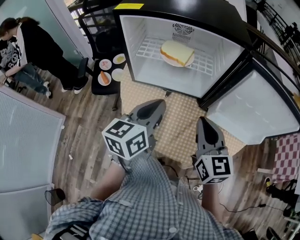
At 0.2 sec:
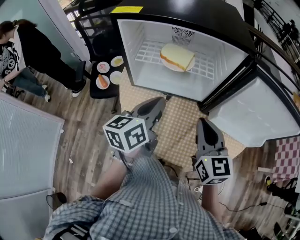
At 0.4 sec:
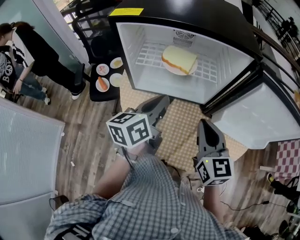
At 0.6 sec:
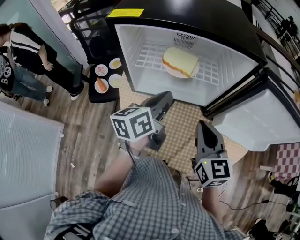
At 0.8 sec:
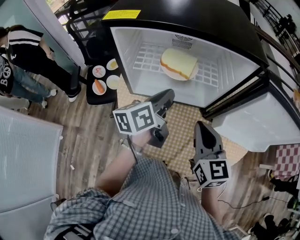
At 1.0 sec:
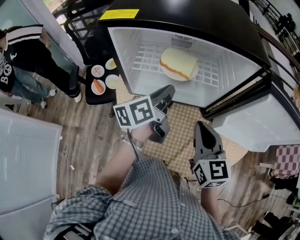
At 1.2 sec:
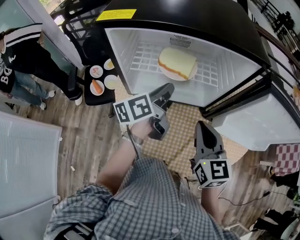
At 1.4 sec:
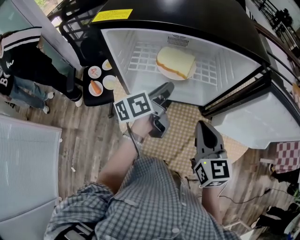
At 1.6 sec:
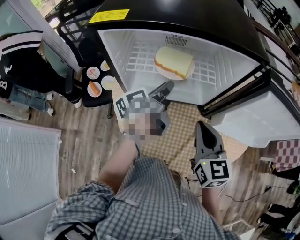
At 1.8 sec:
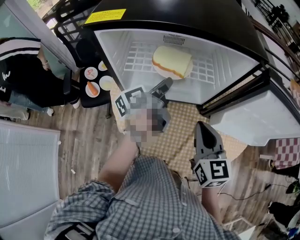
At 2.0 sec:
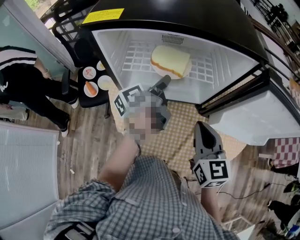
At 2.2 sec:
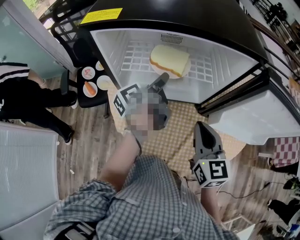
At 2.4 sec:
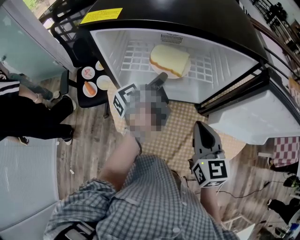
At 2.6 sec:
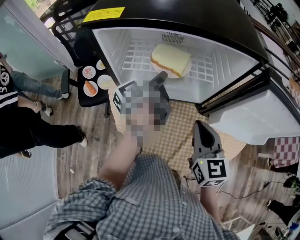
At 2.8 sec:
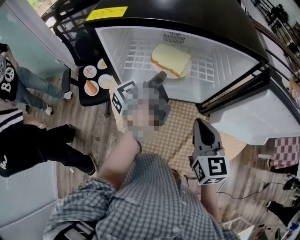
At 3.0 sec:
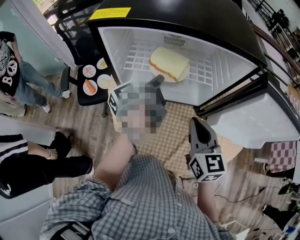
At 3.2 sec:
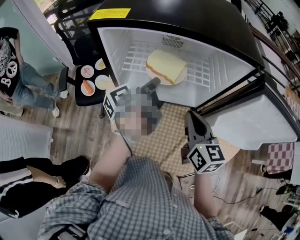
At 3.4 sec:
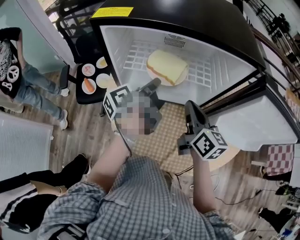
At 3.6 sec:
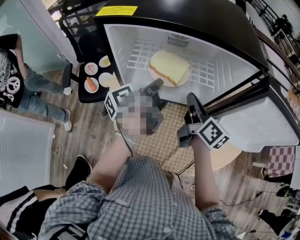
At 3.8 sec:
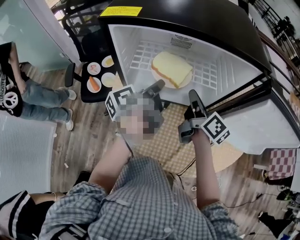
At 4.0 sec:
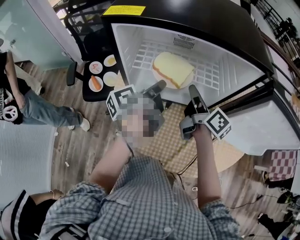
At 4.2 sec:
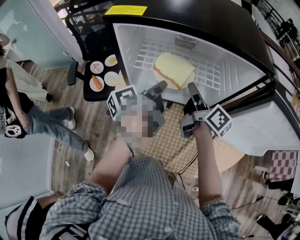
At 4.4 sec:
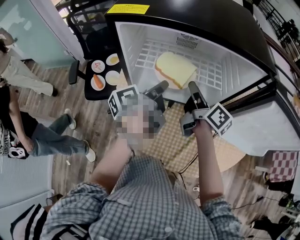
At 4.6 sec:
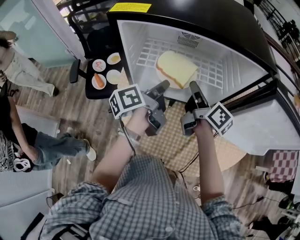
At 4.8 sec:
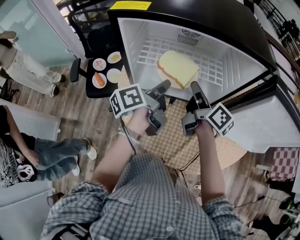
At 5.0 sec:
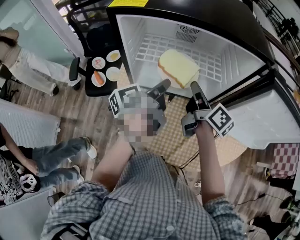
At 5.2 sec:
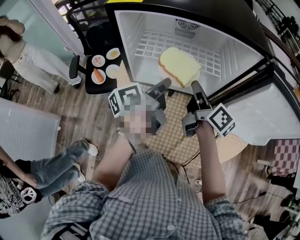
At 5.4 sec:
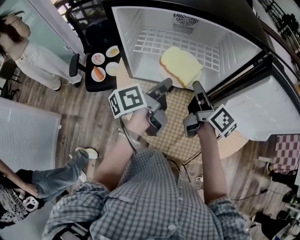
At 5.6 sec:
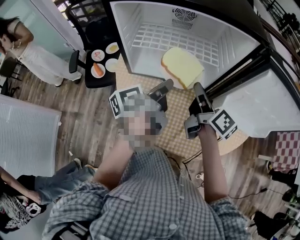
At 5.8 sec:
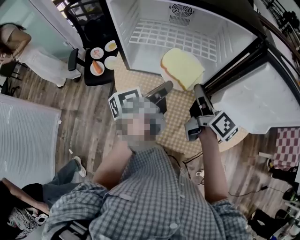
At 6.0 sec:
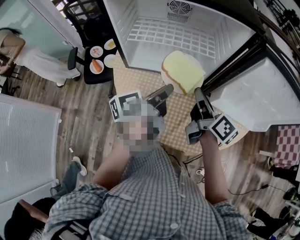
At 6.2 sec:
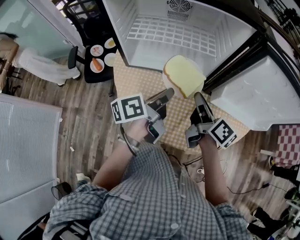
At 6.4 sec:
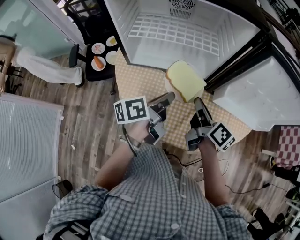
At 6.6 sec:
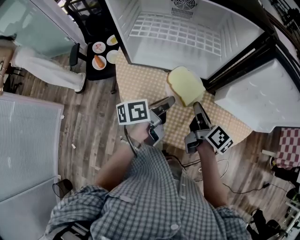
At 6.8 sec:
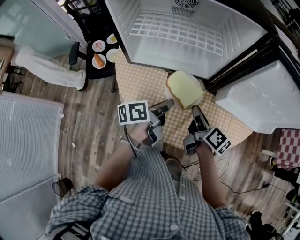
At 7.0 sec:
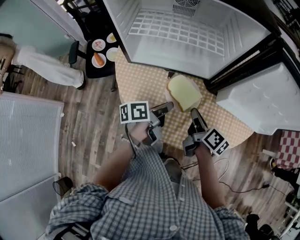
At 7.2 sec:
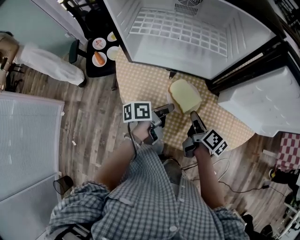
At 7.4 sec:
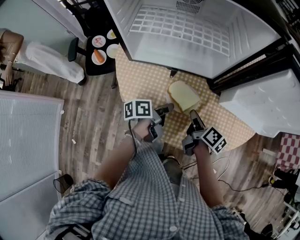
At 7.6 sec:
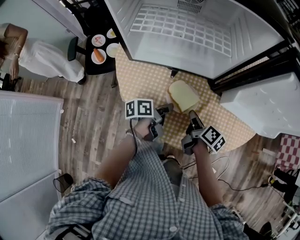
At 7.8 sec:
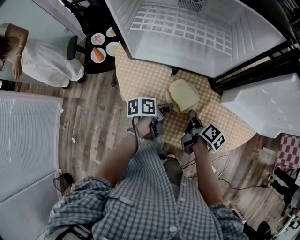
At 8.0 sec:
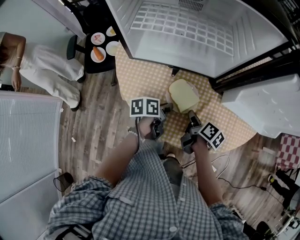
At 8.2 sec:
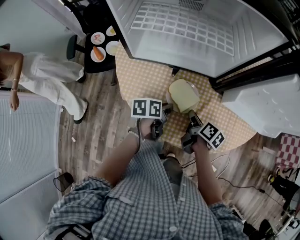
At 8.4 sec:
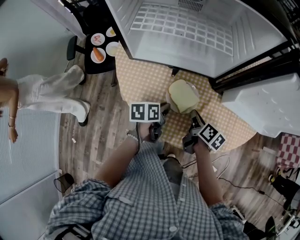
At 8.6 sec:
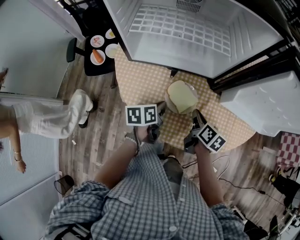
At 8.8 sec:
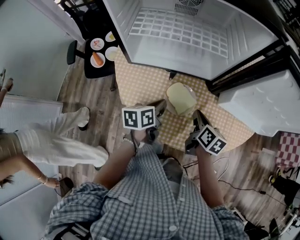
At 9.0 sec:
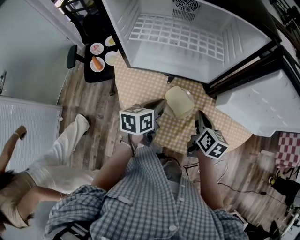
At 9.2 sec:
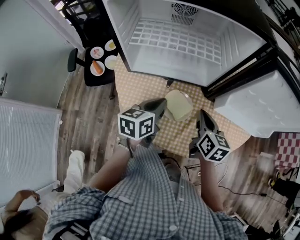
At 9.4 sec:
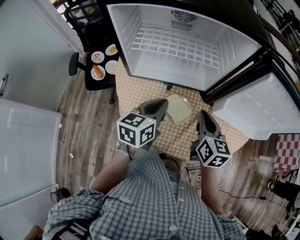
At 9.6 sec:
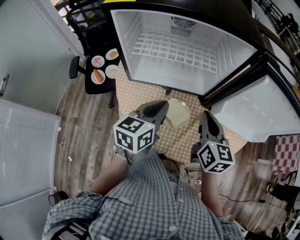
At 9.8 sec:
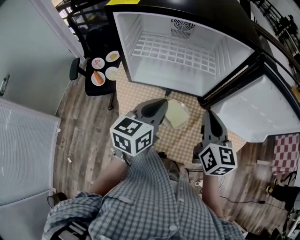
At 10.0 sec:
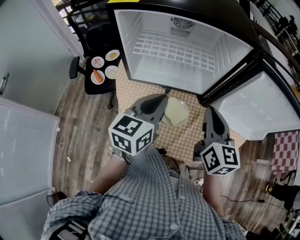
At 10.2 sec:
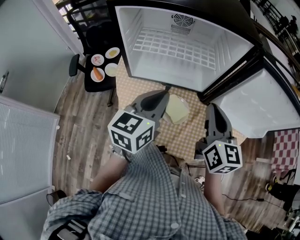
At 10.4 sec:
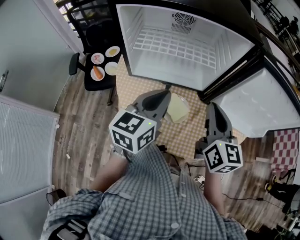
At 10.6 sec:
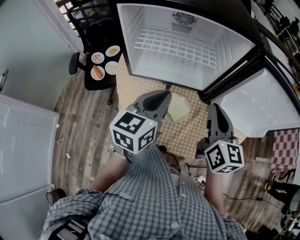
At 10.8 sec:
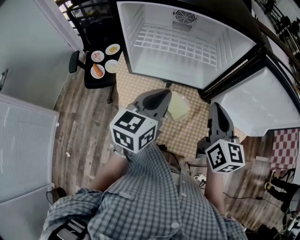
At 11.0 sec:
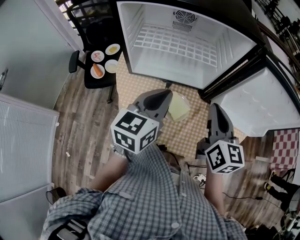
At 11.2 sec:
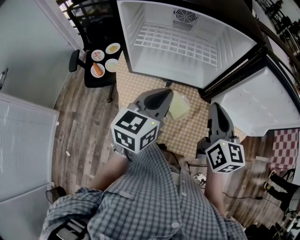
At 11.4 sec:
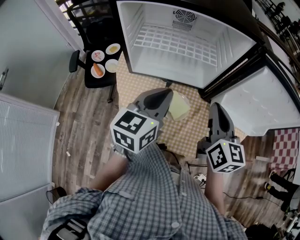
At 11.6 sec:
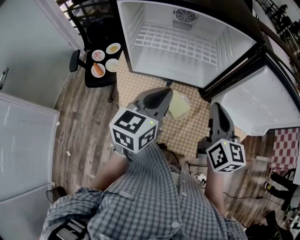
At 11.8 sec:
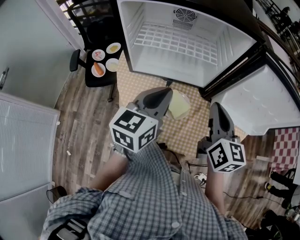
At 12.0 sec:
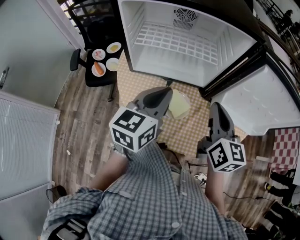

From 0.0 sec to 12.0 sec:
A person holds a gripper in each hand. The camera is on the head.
From 0.0 sec to 1.6 sec: The left gripper moves forward, some 20 cm, turns by about 40 degrees, and opens its fingers; the right gripper shifts approximately 5 cm forward.
From 1.6 sec to 3.0 sec: There are only small adjustments of the grippers.
From 3.0 sec to 4.4 sec: The right gripper moves forward, some 15 cm, and rotates around the line of its fingers by approximately 50 degrees, clockwise from behind.
From 4.4 sec to 6.0 sec: The two grippers go some 15 cm backward and to the right.
From 6.0 sec to 7.6 sec: The grippers both shift downward by some 20 cm. The left gripper swivels roughly 20 degrees. Meanwhile the right gripper rotates approximately 30 degrees.
From 7.6 sec to 9.0 sec: The two grippers go some 10 cm upward. The right gripper swivels roughly 30 degrees, while the left gripper changes its angle by approximately 40 degrees.
From 9.0 sec to 10.4 sec: The two grippers go about 20 cm upward. The left gripper changes its angle by roughly 30 degrees. Meanwhile the right gripper turns by about 30 degrees.
From 10.4 sec to 12.0 sec: The grippers make only small movements.

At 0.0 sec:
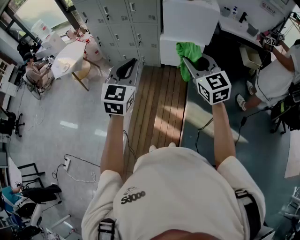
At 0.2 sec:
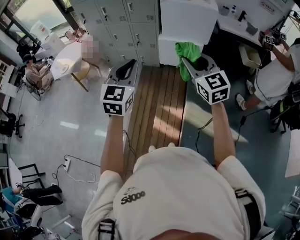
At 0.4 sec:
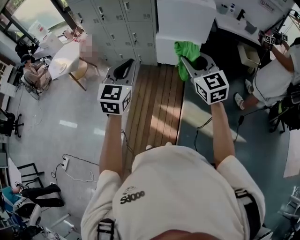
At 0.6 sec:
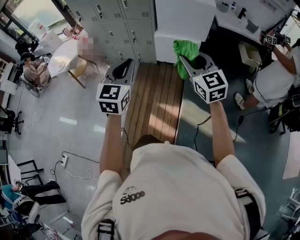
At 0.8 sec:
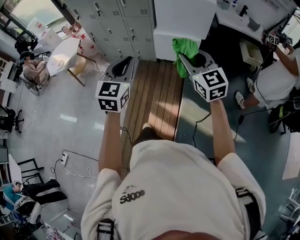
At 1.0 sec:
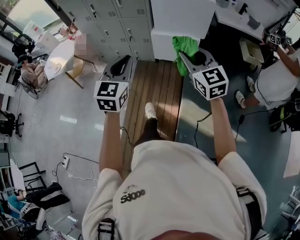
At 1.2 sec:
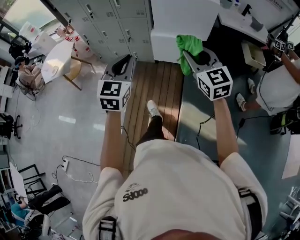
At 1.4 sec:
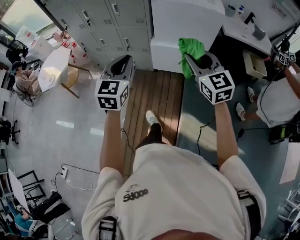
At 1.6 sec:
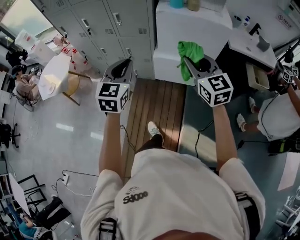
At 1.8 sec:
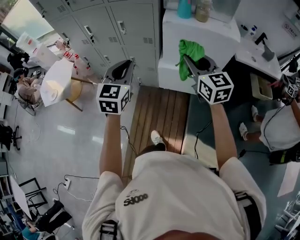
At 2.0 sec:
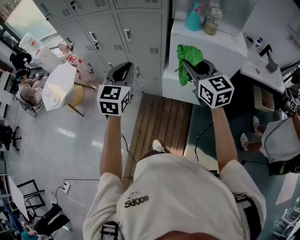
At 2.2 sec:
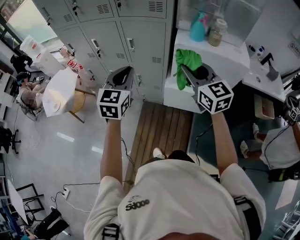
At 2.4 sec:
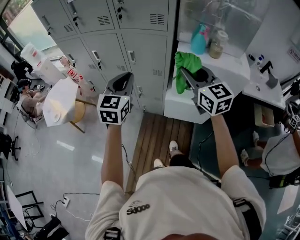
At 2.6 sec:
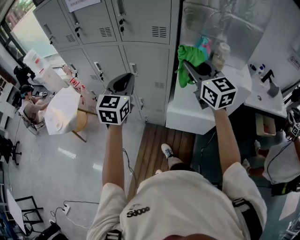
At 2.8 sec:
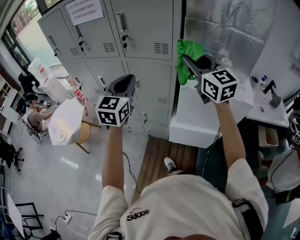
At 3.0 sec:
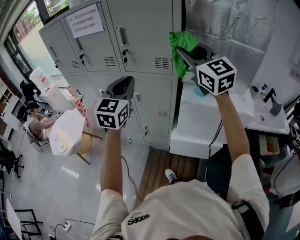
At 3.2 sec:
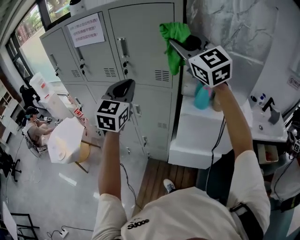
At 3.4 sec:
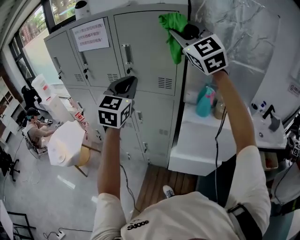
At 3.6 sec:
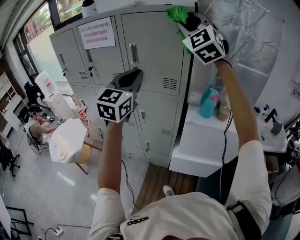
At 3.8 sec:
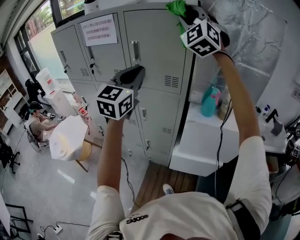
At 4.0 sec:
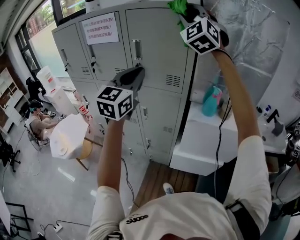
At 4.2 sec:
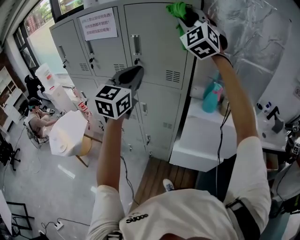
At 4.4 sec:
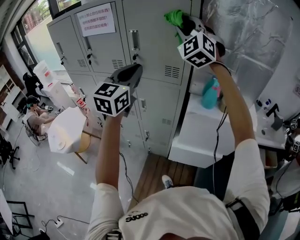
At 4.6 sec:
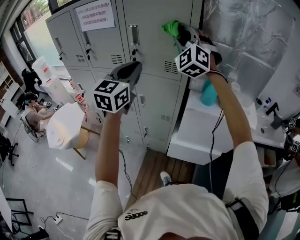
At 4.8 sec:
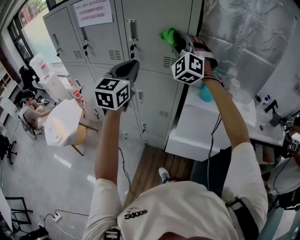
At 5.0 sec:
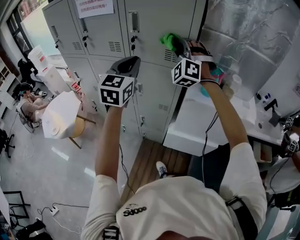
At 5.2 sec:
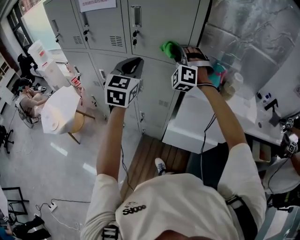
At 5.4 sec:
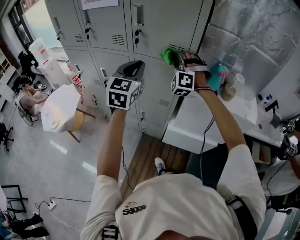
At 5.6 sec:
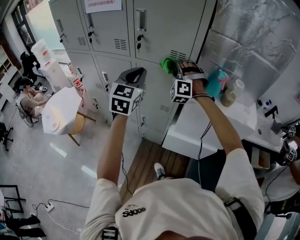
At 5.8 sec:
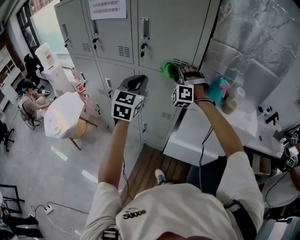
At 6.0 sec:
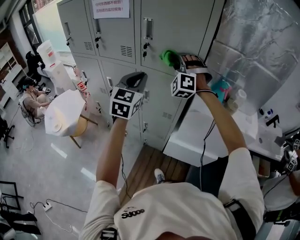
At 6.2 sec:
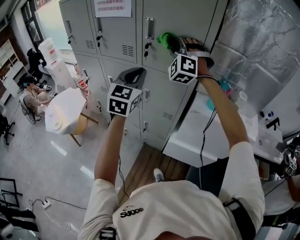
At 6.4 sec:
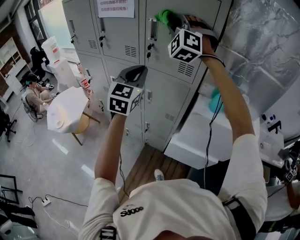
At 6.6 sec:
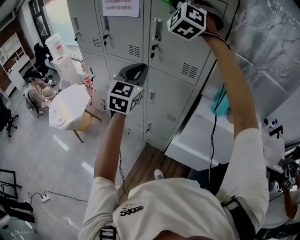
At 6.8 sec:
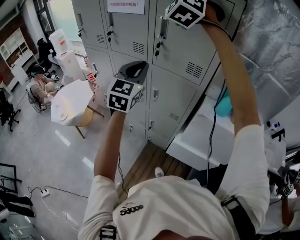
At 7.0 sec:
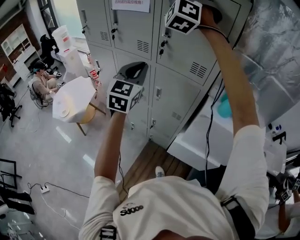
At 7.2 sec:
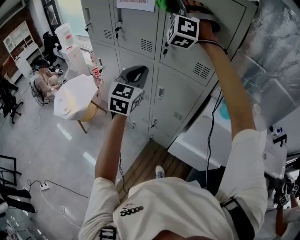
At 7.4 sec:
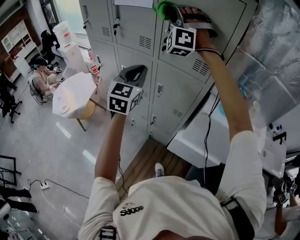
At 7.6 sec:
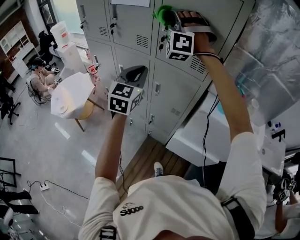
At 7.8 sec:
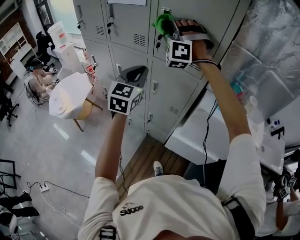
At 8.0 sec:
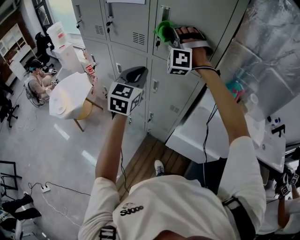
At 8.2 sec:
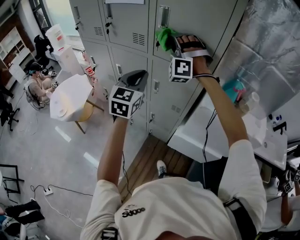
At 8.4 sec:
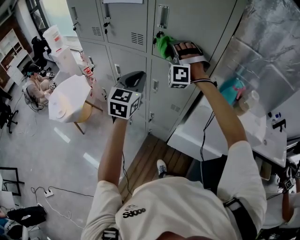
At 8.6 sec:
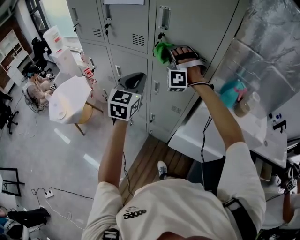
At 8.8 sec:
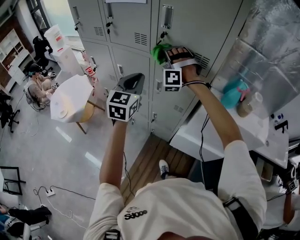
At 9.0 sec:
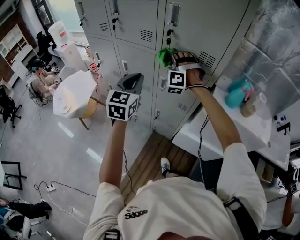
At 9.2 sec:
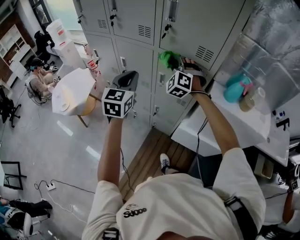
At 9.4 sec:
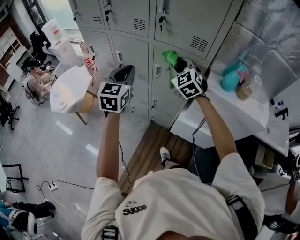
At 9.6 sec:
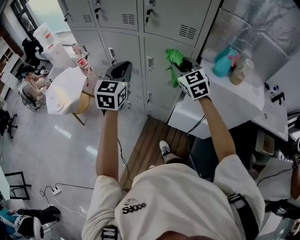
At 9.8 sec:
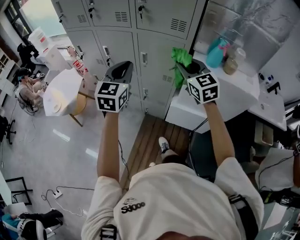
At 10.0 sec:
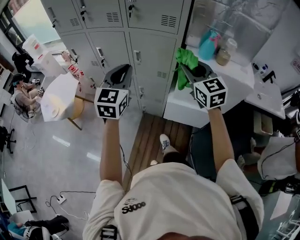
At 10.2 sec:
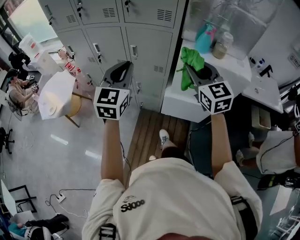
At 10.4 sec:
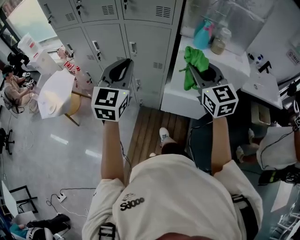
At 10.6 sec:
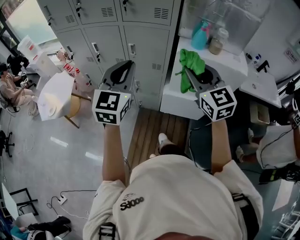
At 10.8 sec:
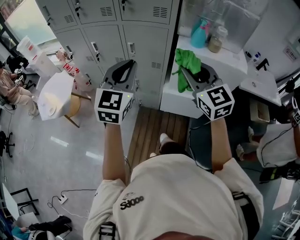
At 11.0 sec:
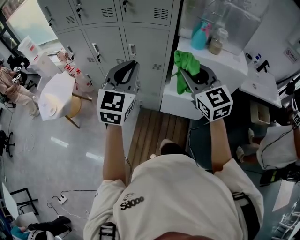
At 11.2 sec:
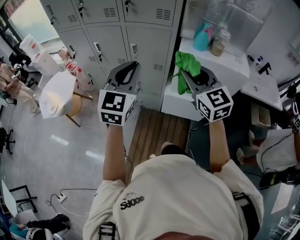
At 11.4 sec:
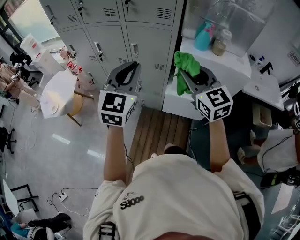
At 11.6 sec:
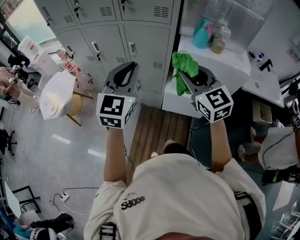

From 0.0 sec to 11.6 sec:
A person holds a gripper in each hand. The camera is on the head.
From 0.0 sec to 1.4 sec: The grippers both shift forward by roughly 25 cm.
From 1.4 sec to 2.8 sec: The two grippers travel together, forward, some 50 cm. The right gripper heads upward, covering roughly 20 cm.
From 2.8 sec to 4.4 sec: The left gripper is displaced upward and forward by about 15 cm. Meanwhile the right gripper heads upward, forward and to the left, covering some 25 cm, and rolls counterclockwise, seen from behind, by approximately 60 degrees.
From 4.4 sec to 5.8 sec: The left gripper moves downward, roughly 10 cm. Meanwhile the right gripper goes approximately 30 cm downward, and swivels approximately 30 degrees.
From 5.8 sec to 7.2 sec: The right gripper goes roughly 30 cm upward and to the left; the left gripper goes roughly 5 cm to the left.
From 7.2 sec to 8.8 sec: The right gripper travels downward by some 30 cm. The left gripper is displaced downward by some 5 cm.
From 8.8 sec to 10.2 sec: The right gripper is displaced backward and to the right by approximately 40 cm, and twists approximately 90 degrees clockwise, seen from behind. Meanwhile the left gripper shifts some 20 cm backward.
From 10.2 sec to 11.6 sec: The right gripper changes place by approximately 5 cm. Meanwhile the left gripper moves some 5 cm.
